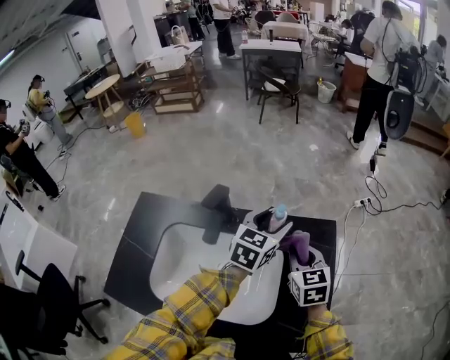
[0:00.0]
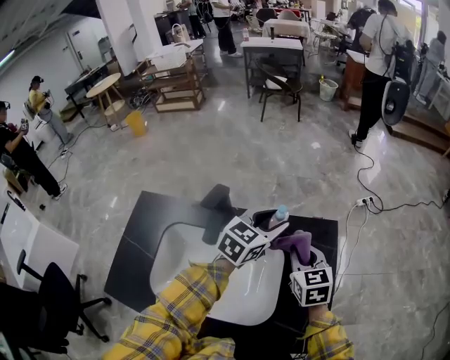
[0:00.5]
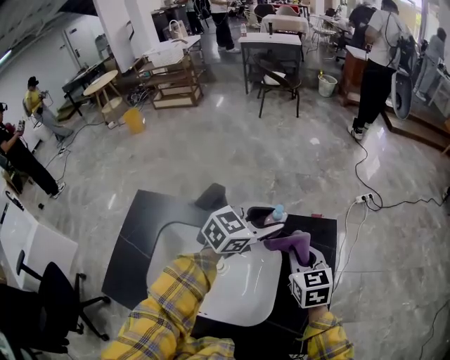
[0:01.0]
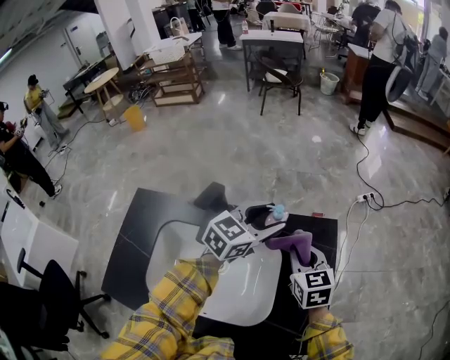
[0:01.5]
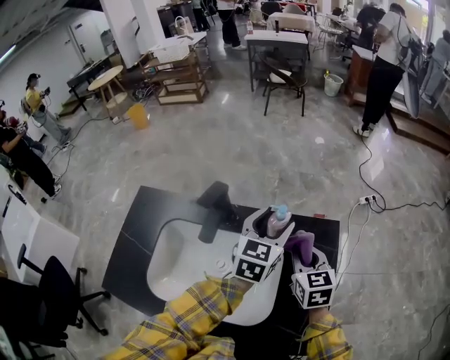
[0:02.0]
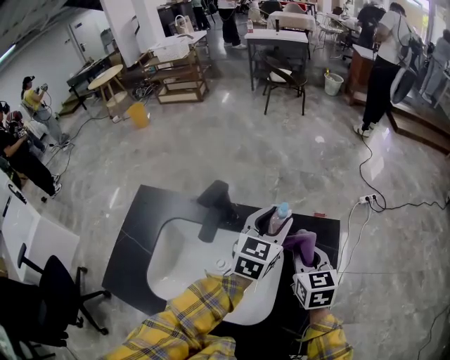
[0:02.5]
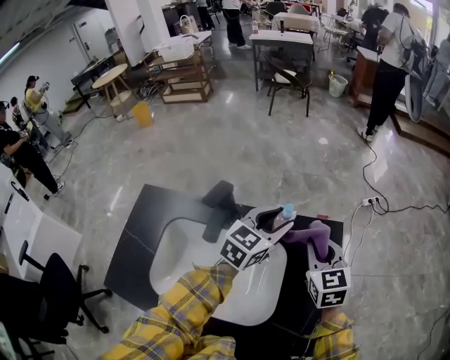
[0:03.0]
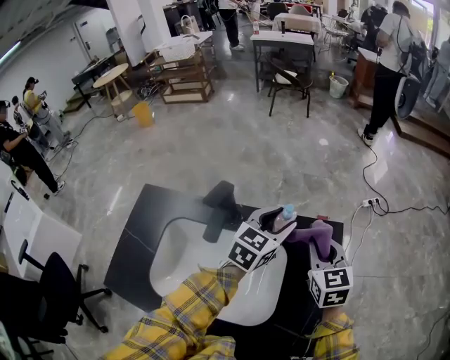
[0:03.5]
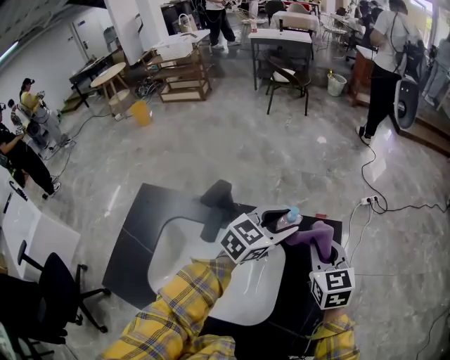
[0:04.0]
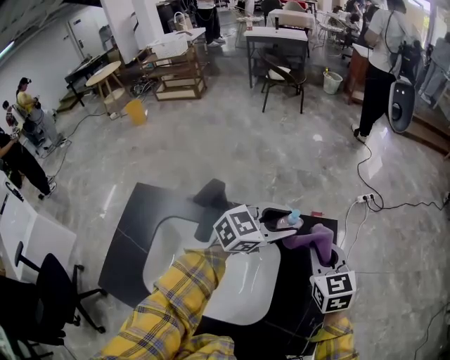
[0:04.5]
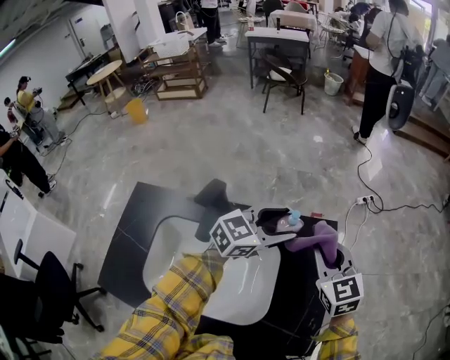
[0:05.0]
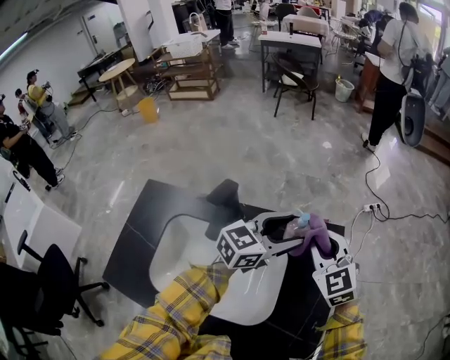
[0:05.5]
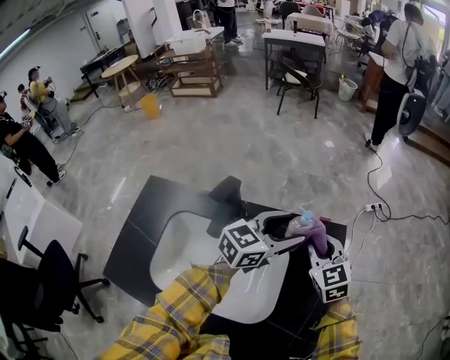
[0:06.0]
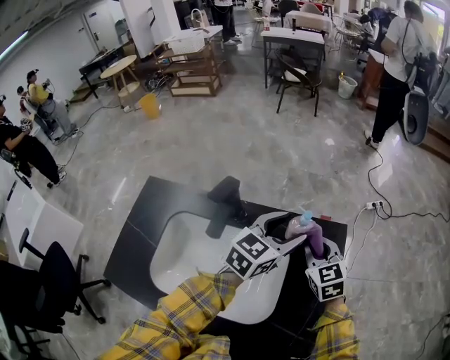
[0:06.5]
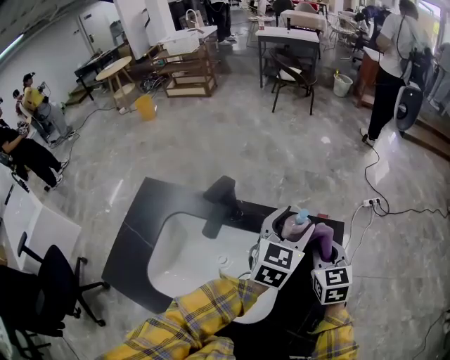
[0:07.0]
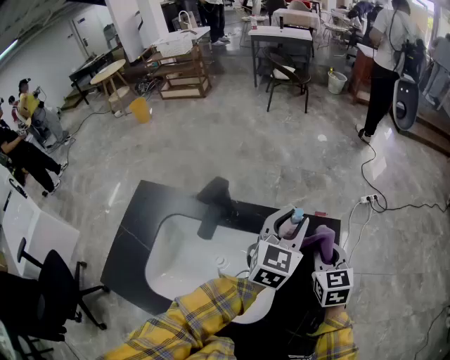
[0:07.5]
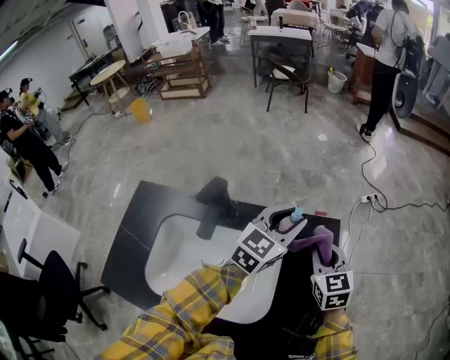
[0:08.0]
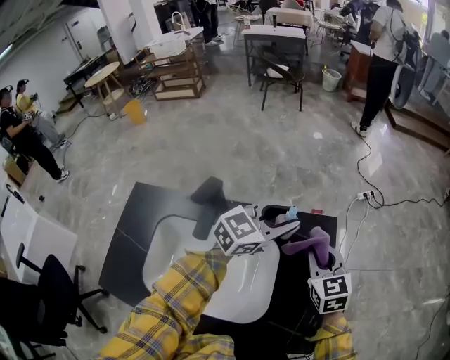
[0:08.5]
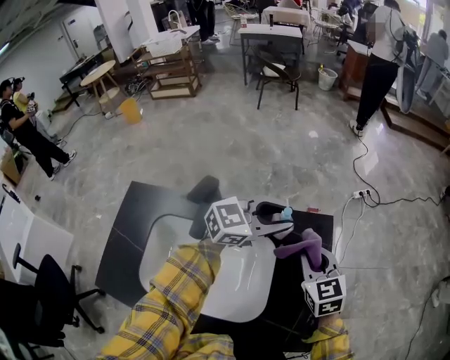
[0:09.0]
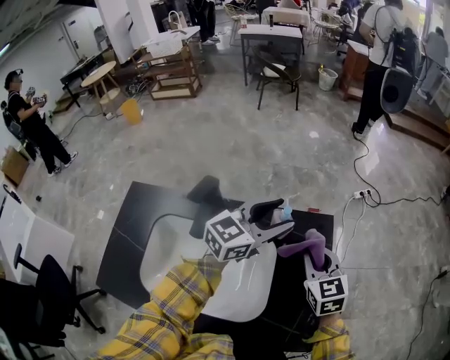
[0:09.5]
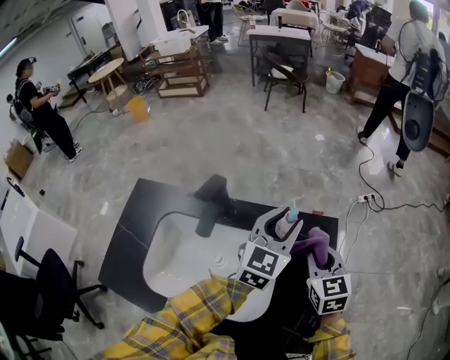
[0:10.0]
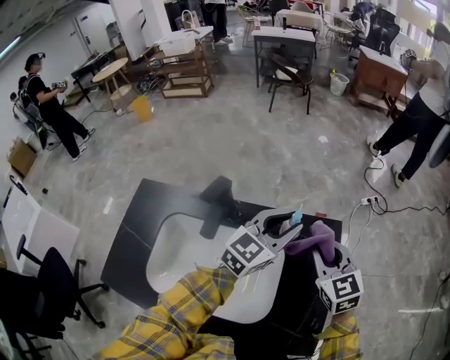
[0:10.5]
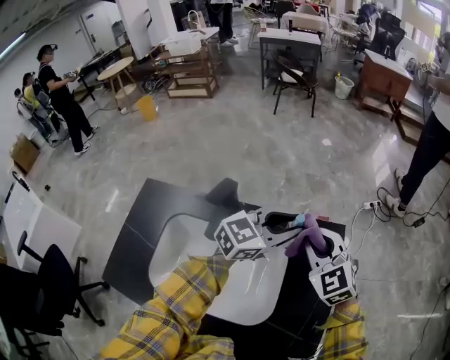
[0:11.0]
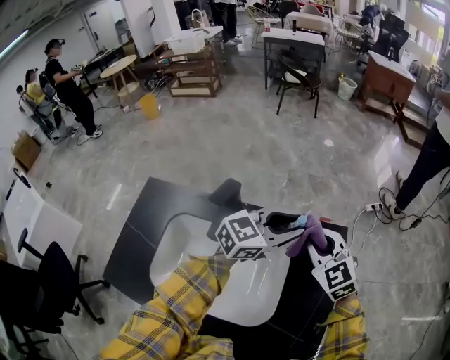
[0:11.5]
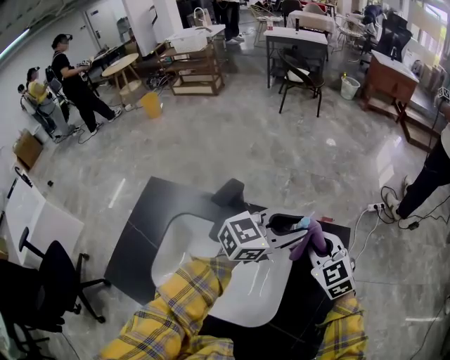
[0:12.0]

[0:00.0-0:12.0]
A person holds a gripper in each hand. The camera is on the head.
0:02.0 to 0:04.0: The left gripper rotates roughly 30 degrees, while the right gripper shifts by roughly 5 cm.
0:06.0 to 0:08.0: The left gripper closes up, while the right gripper shifts roughly 5 cm to the right.
0:10.0 to 0:12.0: The left gripper changes its angle by some 40 degrees. Meanwhile the right gripper is displaced to the left by roughly 5 cm, and rotates about 30 degrees.

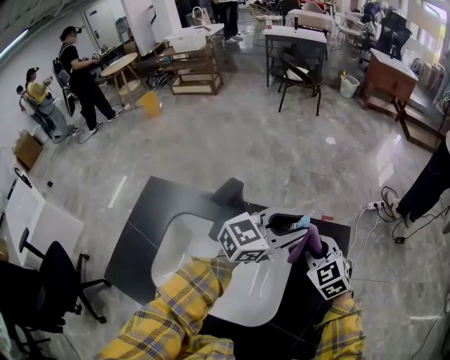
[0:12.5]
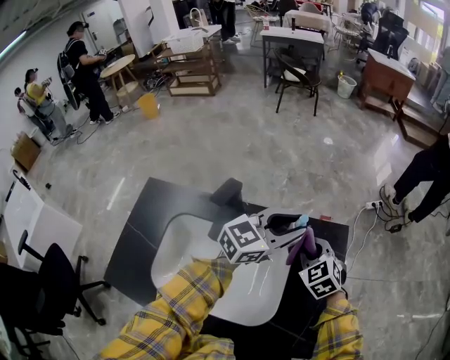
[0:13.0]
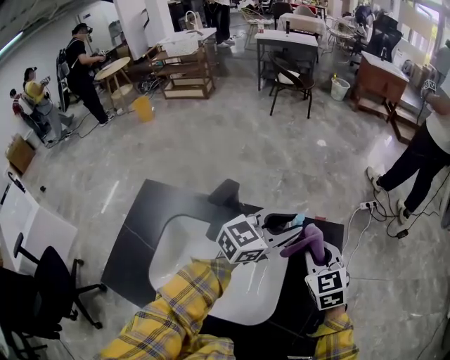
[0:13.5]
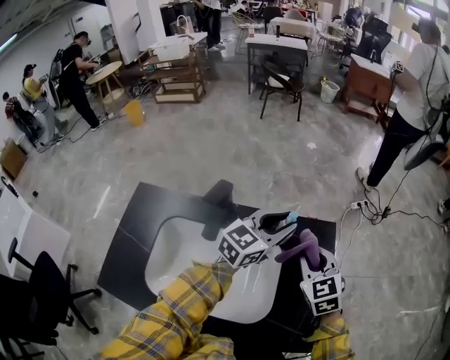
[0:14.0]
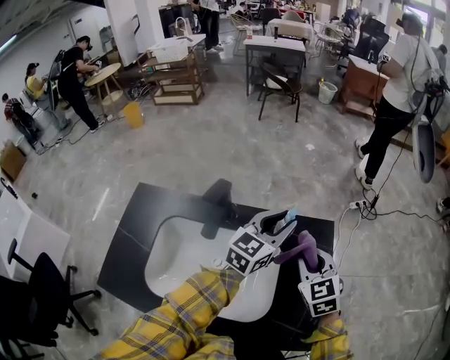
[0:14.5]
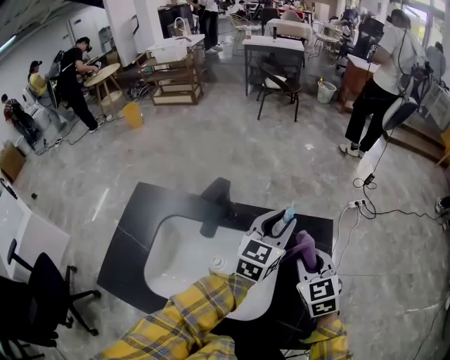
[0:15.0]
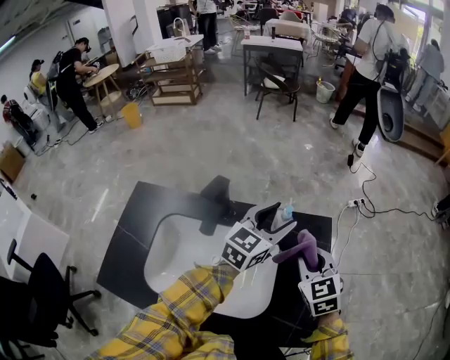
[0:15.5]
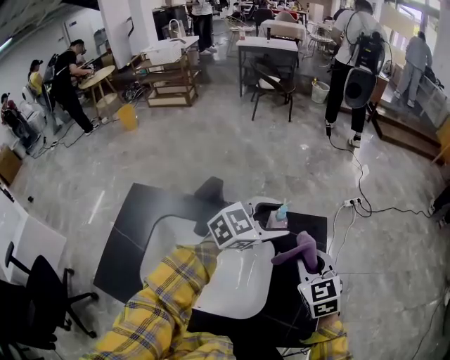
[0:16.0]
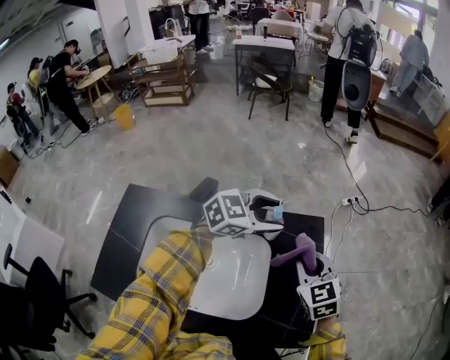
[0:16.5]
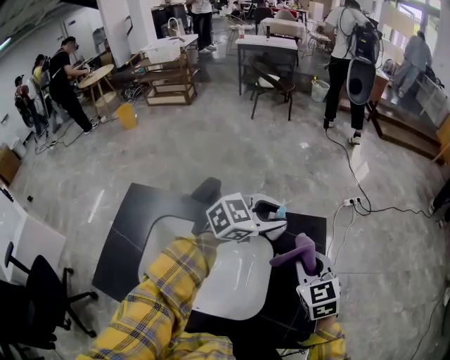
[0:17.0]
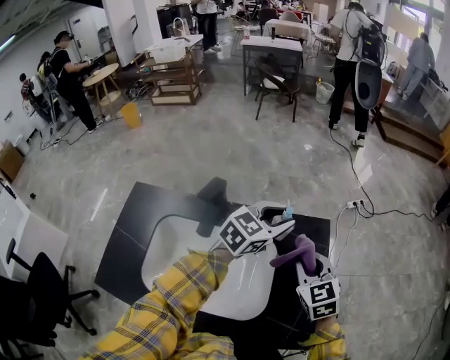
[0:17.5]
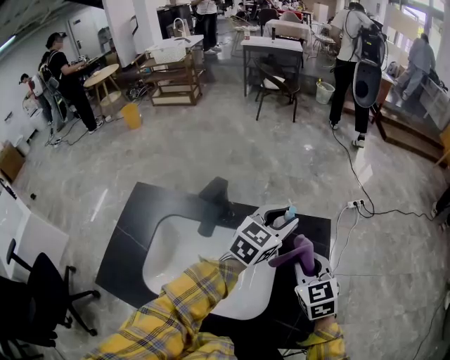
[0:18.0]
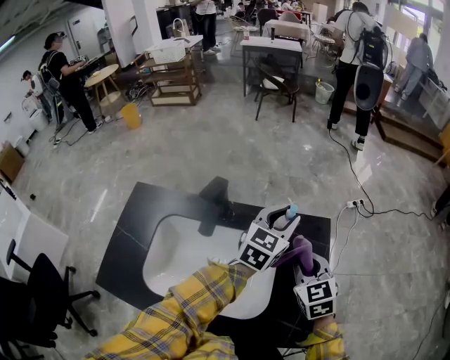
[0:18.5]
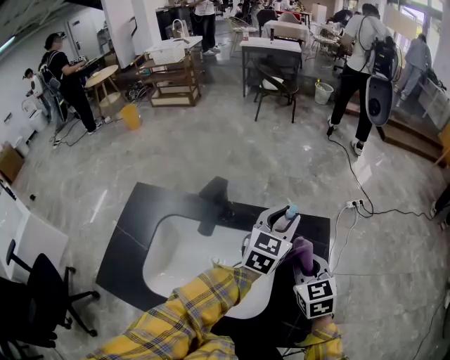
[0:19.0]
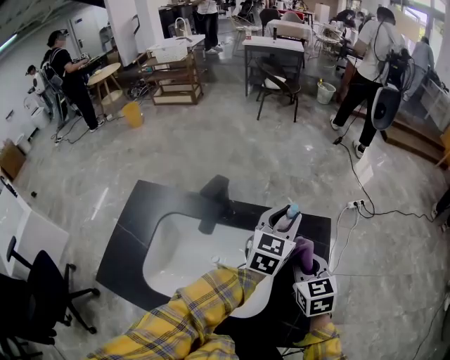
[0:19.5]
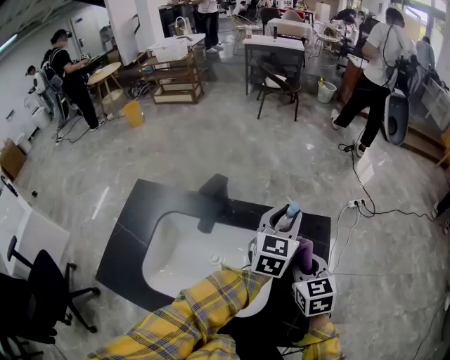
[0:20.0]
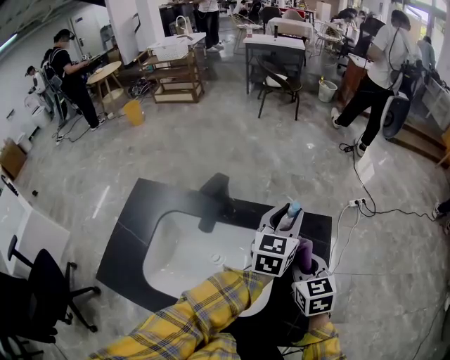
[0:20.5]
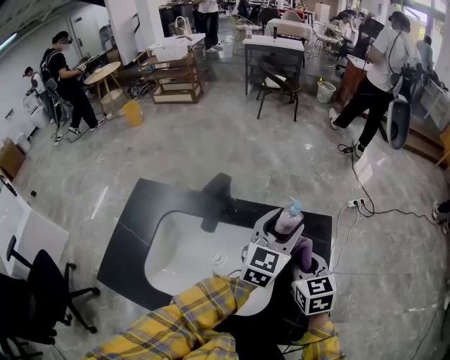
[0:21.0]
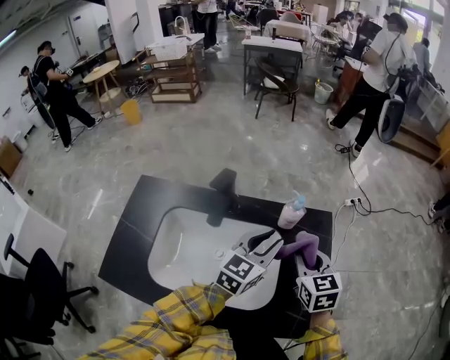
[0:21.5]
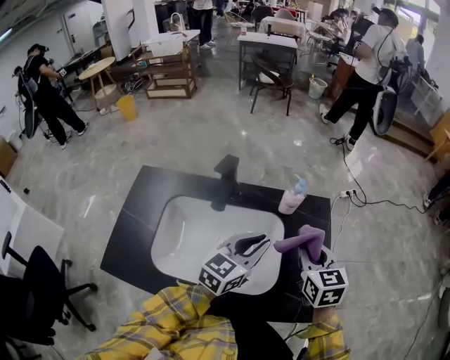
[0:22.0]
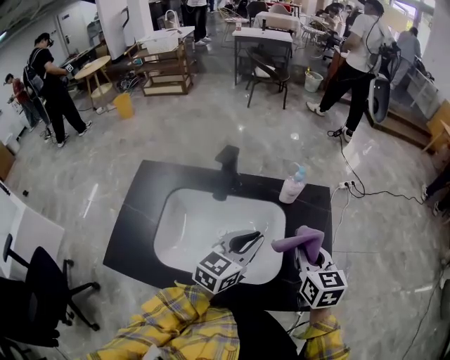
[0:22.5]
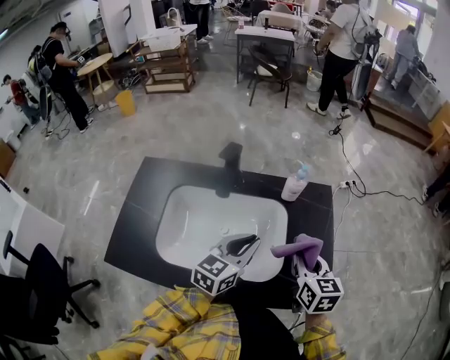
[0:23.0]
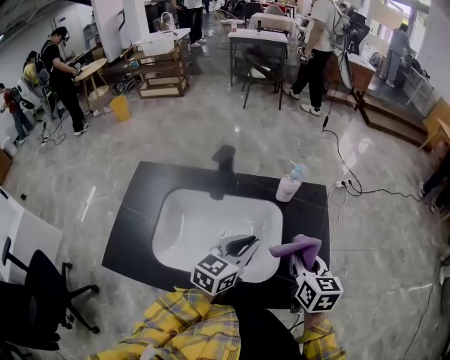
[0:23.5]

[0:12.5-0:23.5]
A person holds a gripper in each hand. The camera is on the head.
0:12.5 to 0:14.5: The right gripper goes some 5 cm backward.
0:14.5 to 0:16.0: The left gripper changes its angle by roughly 30 degrees, and opens its fingers.
0:16.0 to 0:18.0: The left gripper rotates some 30 degrees, and closes its fingers.
0:18.0 to 0:20.0: The left gripper changes its angle by about 20 degrees.
0:20.0 to 0:21.5: The left gripper shifts roughly 10 cm backward and to the left, and opens, then closes once more.
0:21.5 to 0:23.5: Both grippers move backward, about 10 cm.

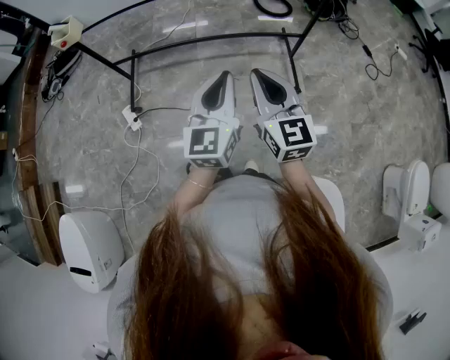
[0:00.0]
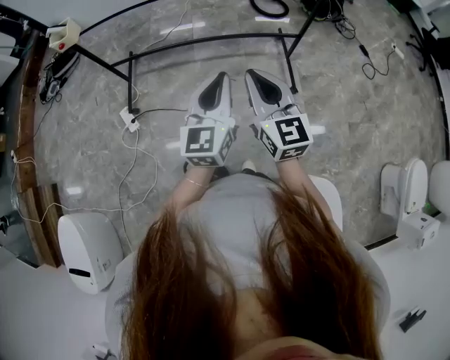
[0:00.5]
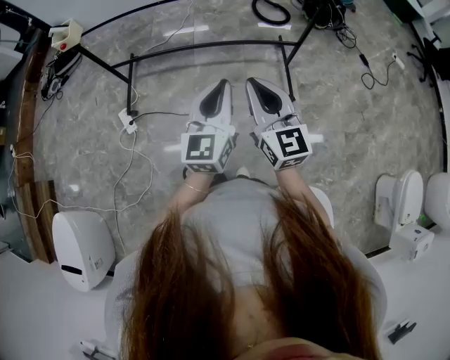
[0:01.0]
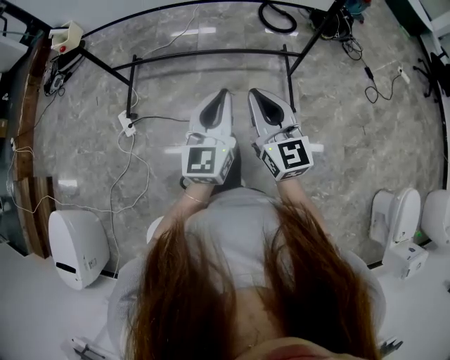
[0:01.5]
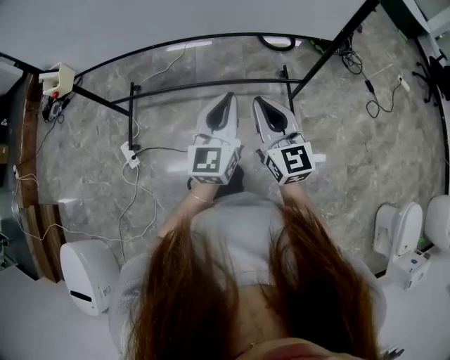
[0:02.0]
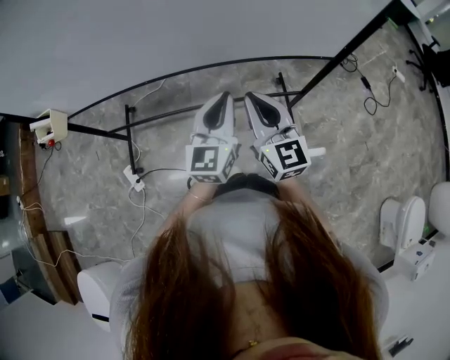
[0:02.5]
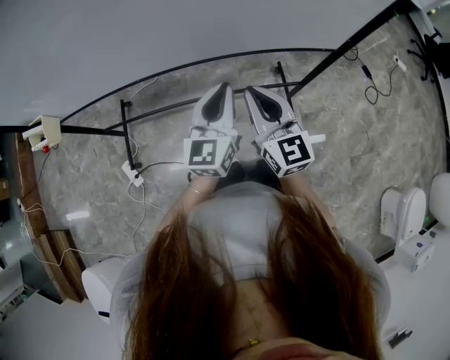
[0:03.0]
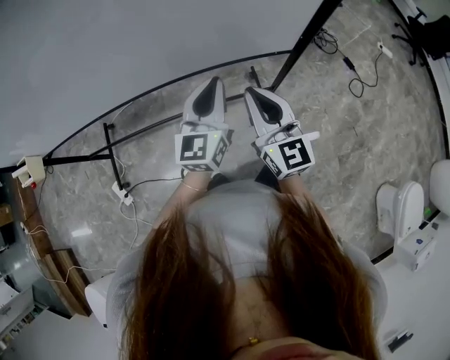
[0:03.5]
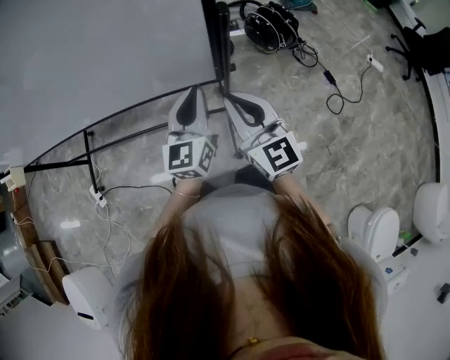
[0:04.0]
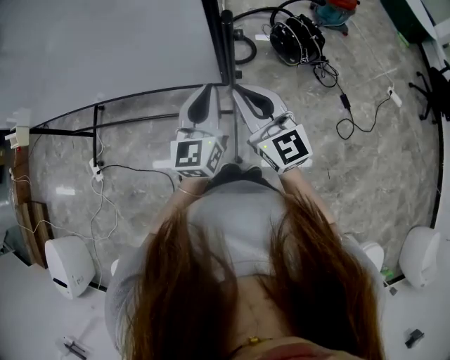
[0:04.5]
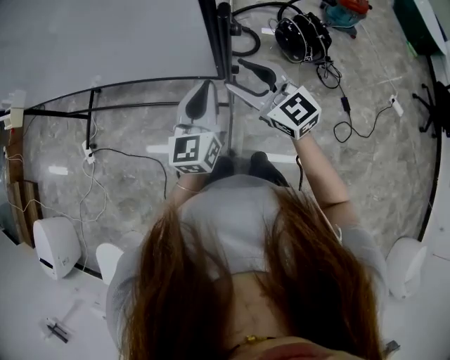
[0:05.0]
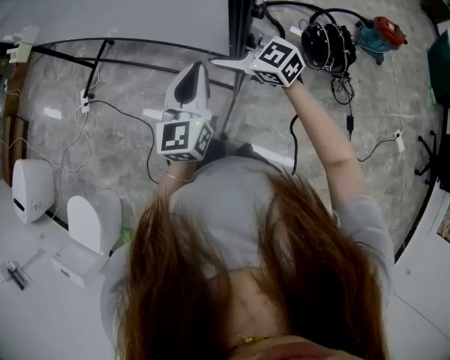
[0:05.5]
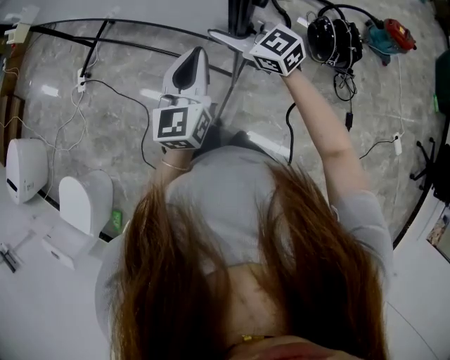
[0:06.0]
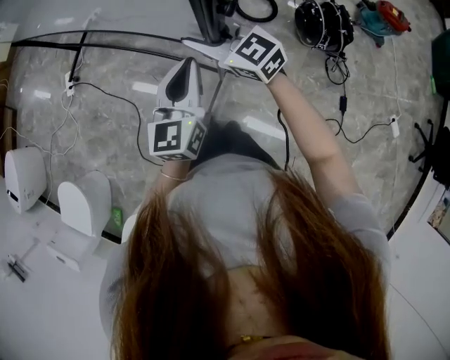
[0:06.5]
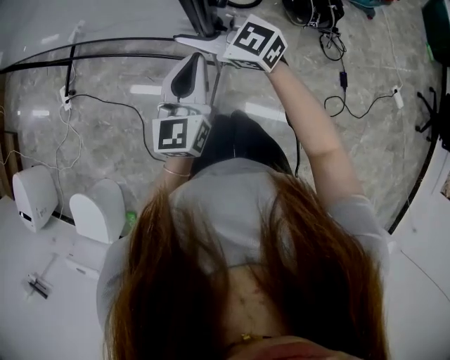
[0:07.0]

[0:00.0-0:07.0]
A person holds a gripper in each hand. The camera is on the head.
0:00.0 to 0:02.0: Both grippers move forward, some 15 cm.
0:02.0 to 0:03.5: Both grippers move forward and to the right, approximately 20 cm.
0:03.5 to 0:05.0: The right gripper moves some 25 cm, rotates approximately 40 degrees, and opens its fingers, while the left gripper ends up about 25 cm from where it was, and turns by approximately 20 degrees.
0:05.0 to 0:07.0: The right gripper shifts some 10 cm downward and forward, and rotates roughly 30 degrees; the left gripper moves approximately 5 cm.
